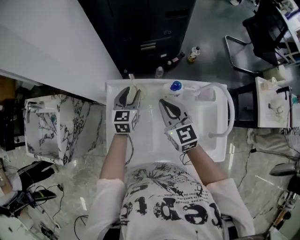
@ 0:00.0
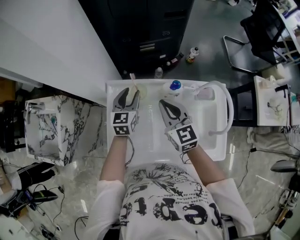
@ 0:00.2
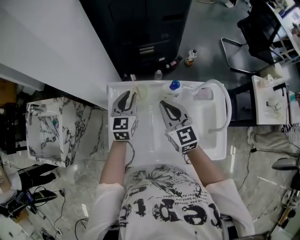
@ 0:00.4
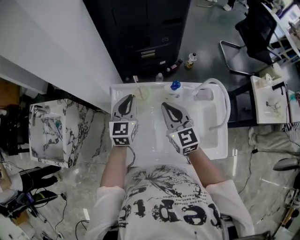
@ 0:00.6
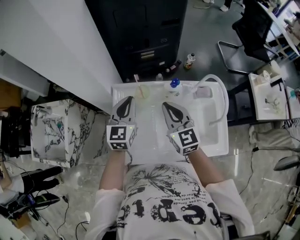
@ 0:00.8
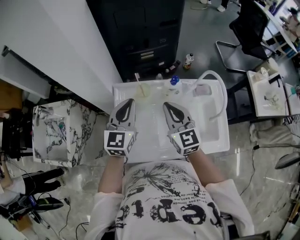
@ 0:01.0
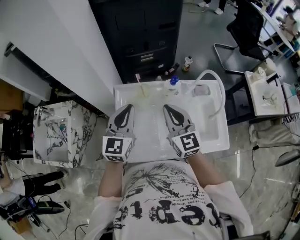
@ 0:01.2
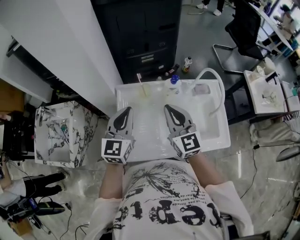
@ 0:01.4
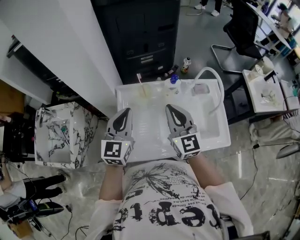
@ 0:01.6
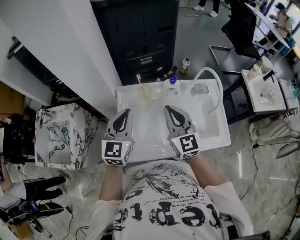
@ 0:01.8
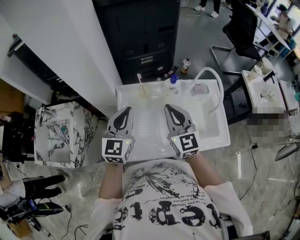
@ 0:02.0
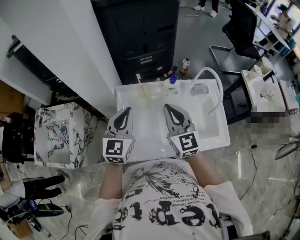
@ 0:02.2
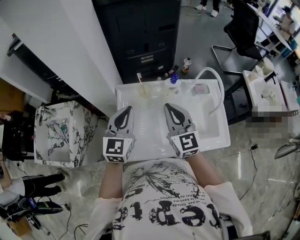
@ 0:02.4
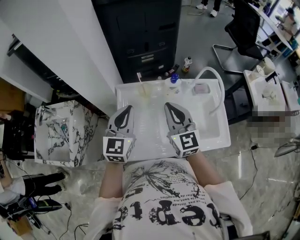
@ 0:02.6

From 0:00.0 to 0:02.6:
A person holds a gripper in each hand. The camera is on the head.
From 0:00.0 to 0:01.2: The left gripper heads upward and backward, covering roughly 25 cm, and closes its fingers; the right gripper shifts approximately 15 cm backward and upward.
From 0:01.2 to 0:02.6: There are only small adjustments of the grippers.

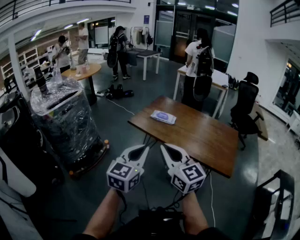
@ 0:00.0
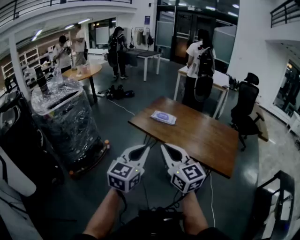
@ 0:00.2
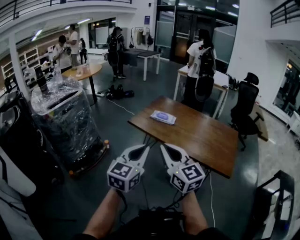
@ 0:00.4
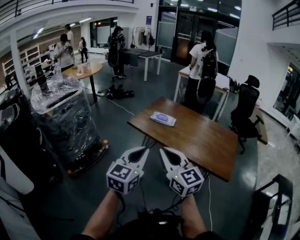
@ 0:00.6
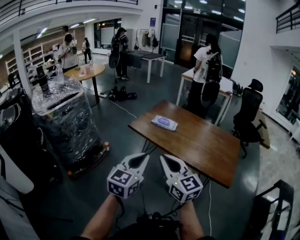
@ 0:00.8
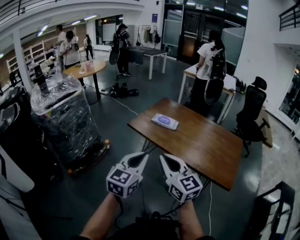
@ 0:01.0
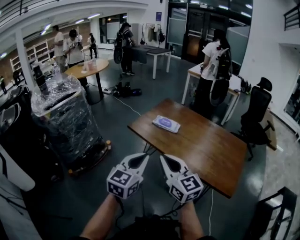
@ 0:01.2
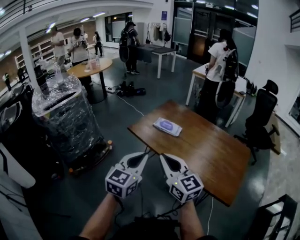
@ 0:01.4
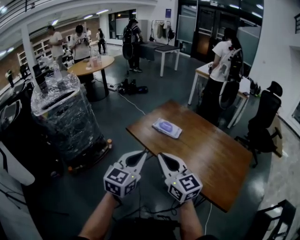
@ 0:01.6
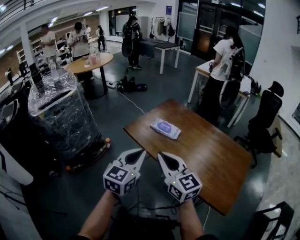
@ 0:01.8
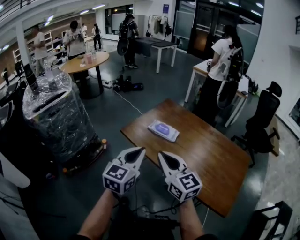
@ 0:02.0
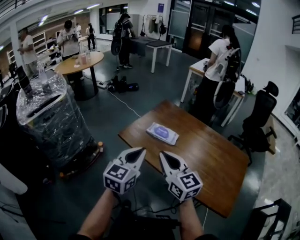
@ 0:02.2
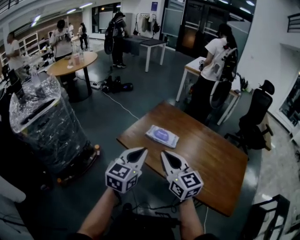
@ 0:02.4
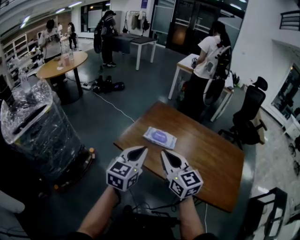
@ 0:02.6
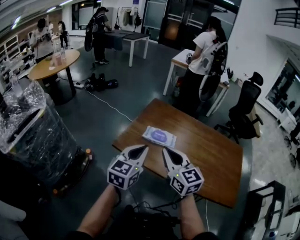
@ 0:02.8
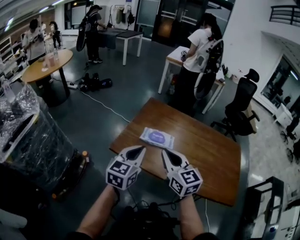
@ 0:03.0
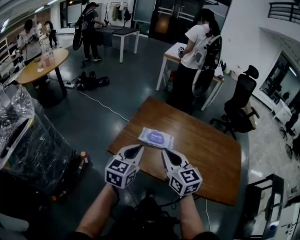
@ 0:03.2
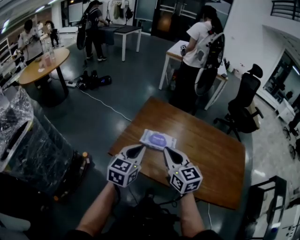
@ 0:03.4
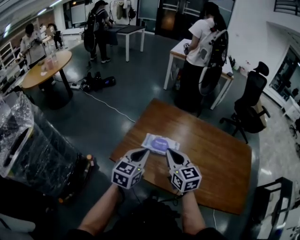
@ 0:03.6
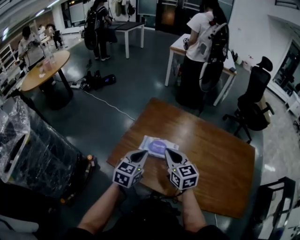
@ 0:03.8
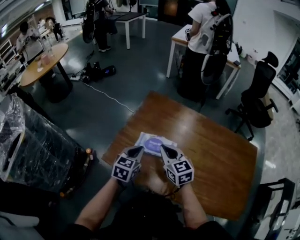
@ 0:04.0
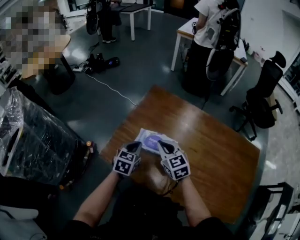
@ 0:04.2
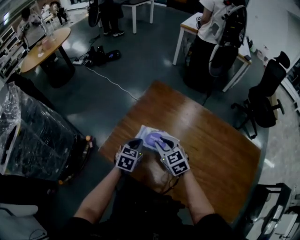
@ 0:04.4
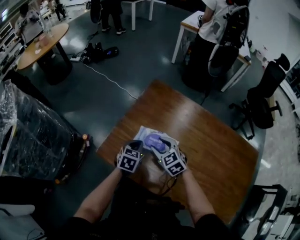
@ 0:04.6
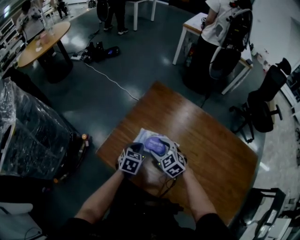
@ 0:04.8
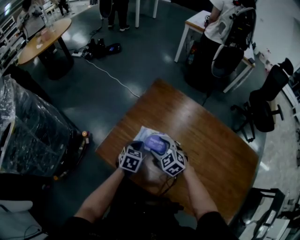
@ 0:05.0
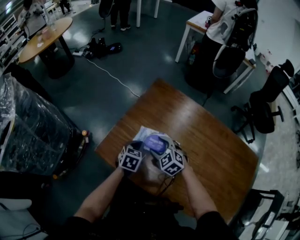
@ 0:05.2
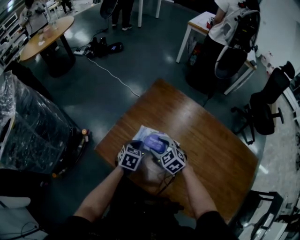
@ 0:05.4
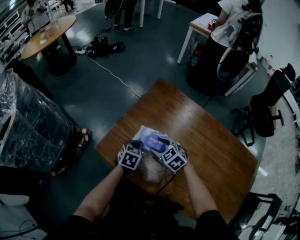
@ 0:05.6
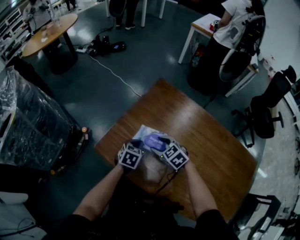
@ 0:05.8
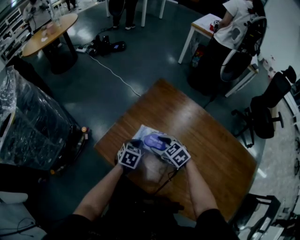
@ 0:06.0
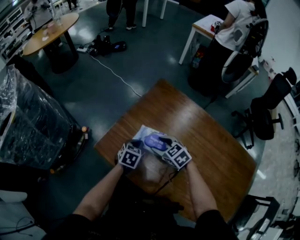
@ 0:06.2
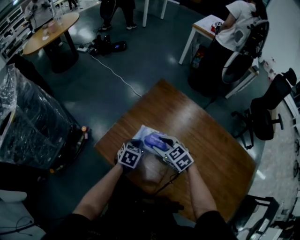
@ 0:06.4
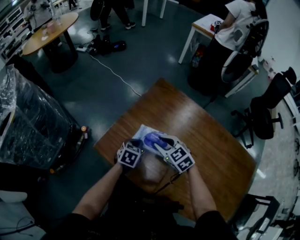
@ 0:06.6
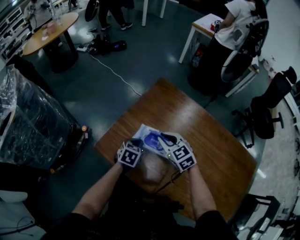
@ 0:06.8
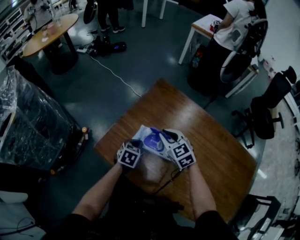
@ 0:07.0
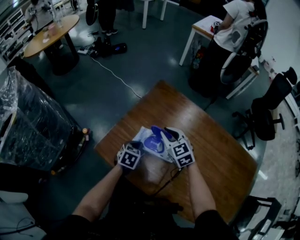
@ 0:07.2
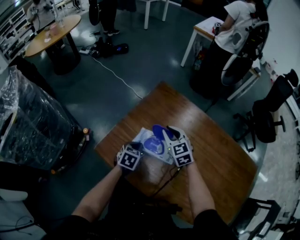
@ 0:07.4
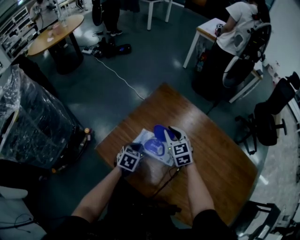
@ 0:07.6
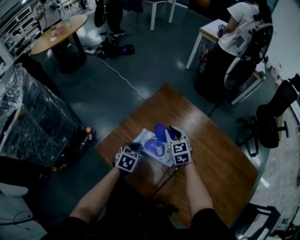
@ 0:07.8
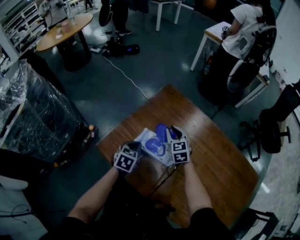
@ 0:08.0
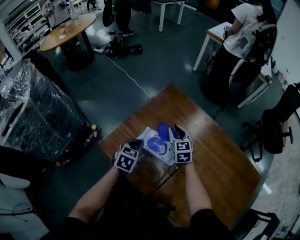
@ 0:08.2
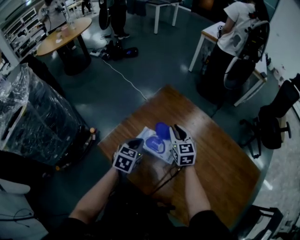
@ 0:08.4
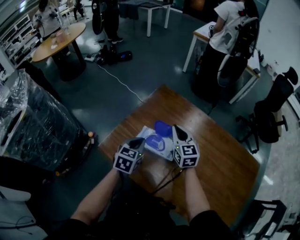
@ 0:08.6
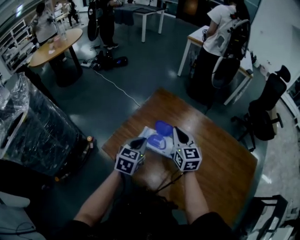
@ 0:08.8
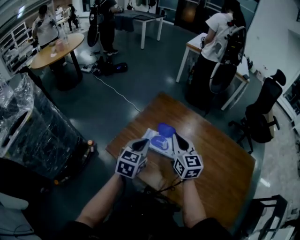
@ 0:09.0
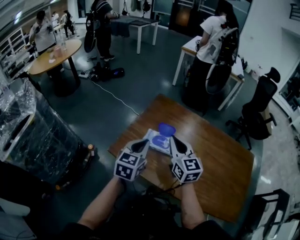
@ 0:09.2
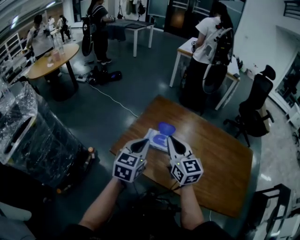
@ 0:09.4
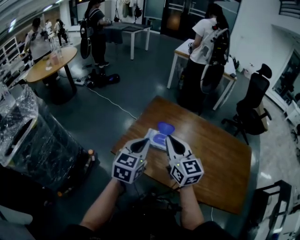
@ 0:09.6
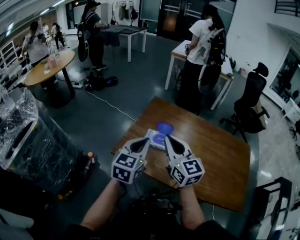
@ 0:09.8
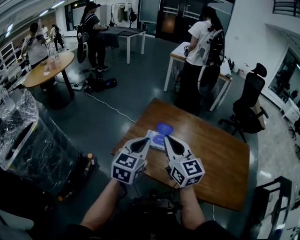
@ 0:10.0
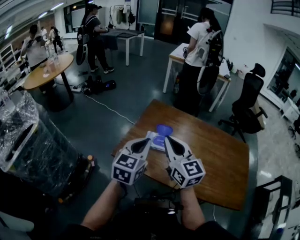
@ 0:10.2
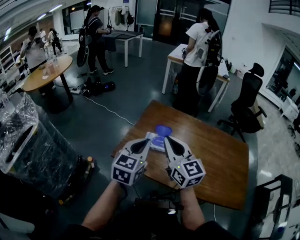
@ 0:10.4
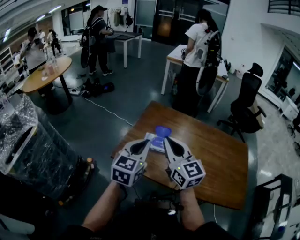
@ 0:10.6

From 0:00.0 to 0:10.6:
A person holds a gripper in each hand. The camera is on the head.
From 0:00.0 to 0:01.6: The two grippers go some 15 cm forward and to the right.
From 0:01.6 to 0:03.0: The grippers both shift forward by about 20 cm. The right gripper swivels about 30 degrees.
From 0:03.0 to 0:04.6: The two grippers go approximately 30 cm downward and forward. The left gripper tips its fingers downward by roughly 30 degrees, while the right gripper rotates approximately 30 degrees, and opens its fingers.
From 0:04.6 to 0:06.0: The grippers make only small movements.
From 0:06.0 to 0:07.6: The right gripper heads forward and upward, covering approximately 10 cm, rotates approximately 30 degrees, and closes.
From 0:07.6 to 0:09.0: The right gripper is displaced upward and backward by some 20 cm, and swivels about 30 degrees, while the left gripper travels upward by some 20 cm, and turns by about 30 degrees.
From 0:09.0 to 0:10.6: The right gripper heads backward, upward and to the left, covering roughly 20 cm; the left gripper goes some 15 cm upward and backward.

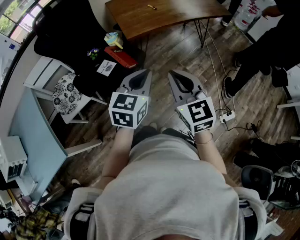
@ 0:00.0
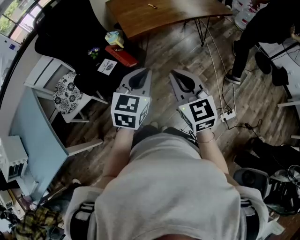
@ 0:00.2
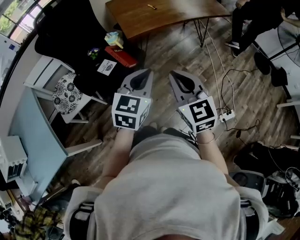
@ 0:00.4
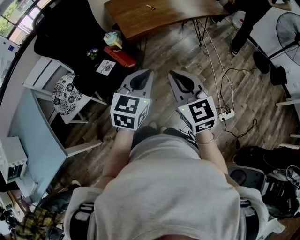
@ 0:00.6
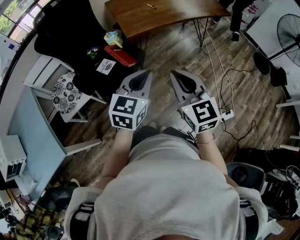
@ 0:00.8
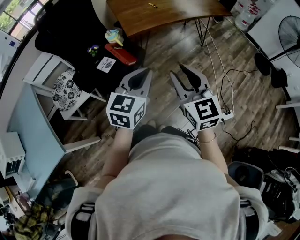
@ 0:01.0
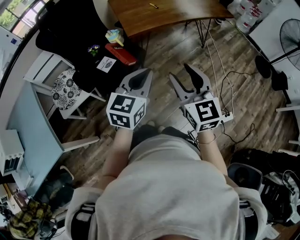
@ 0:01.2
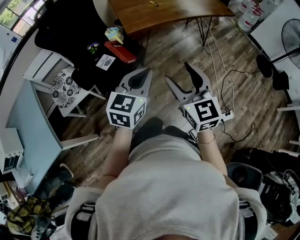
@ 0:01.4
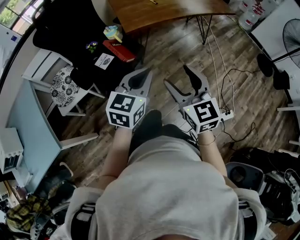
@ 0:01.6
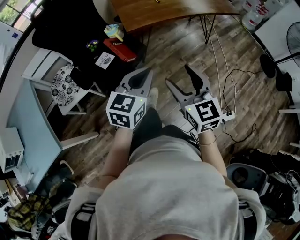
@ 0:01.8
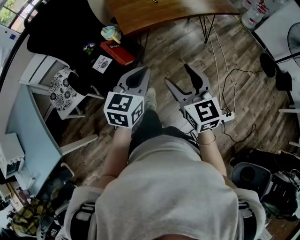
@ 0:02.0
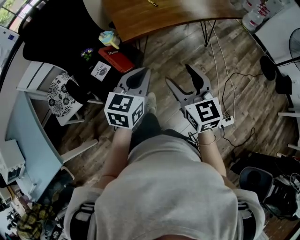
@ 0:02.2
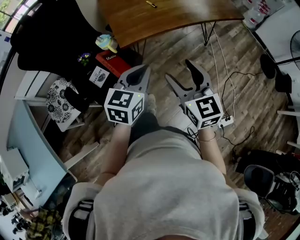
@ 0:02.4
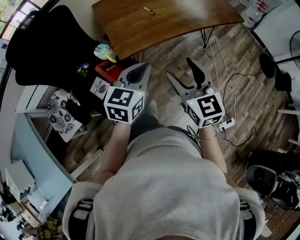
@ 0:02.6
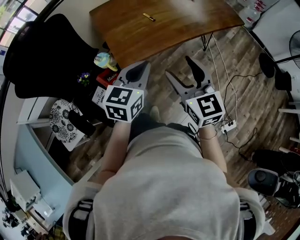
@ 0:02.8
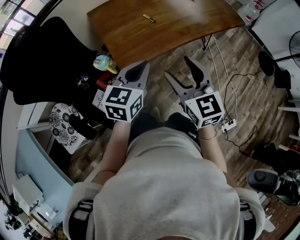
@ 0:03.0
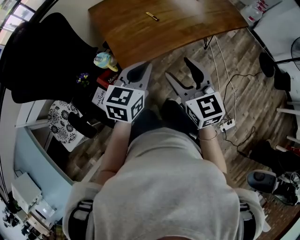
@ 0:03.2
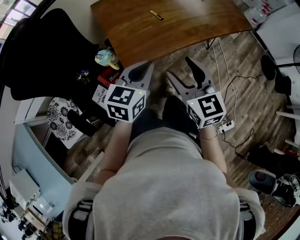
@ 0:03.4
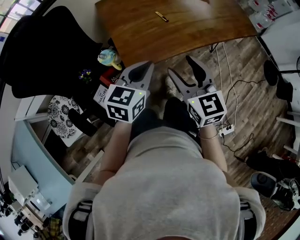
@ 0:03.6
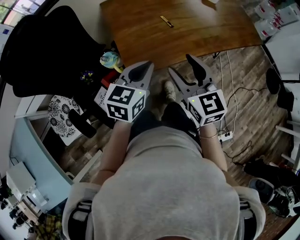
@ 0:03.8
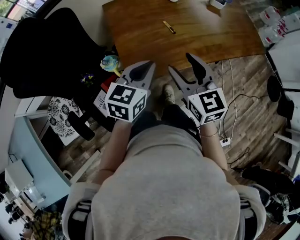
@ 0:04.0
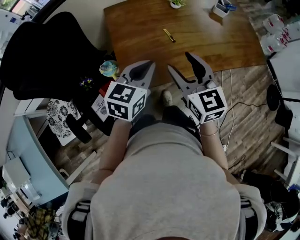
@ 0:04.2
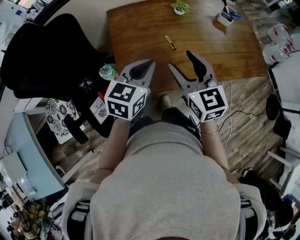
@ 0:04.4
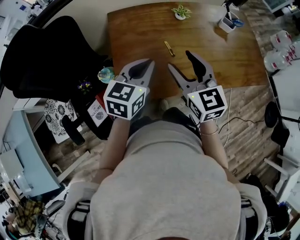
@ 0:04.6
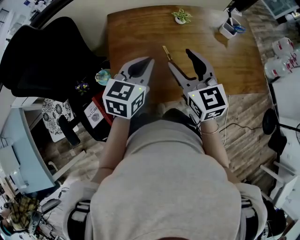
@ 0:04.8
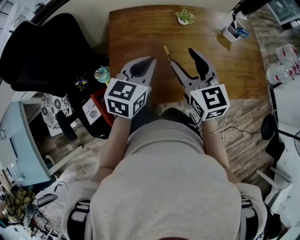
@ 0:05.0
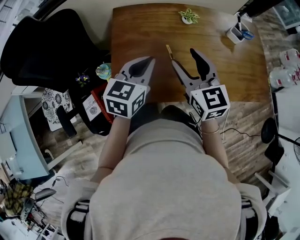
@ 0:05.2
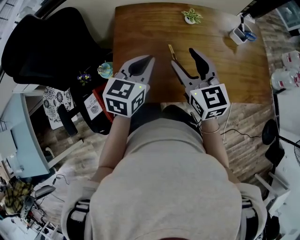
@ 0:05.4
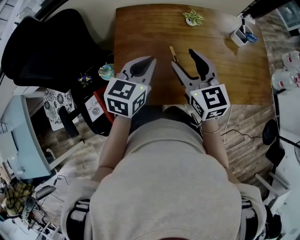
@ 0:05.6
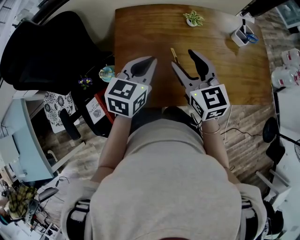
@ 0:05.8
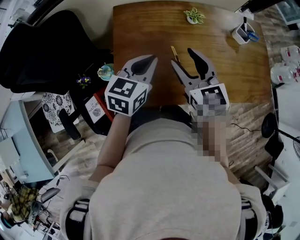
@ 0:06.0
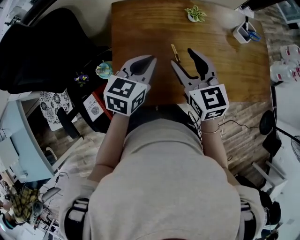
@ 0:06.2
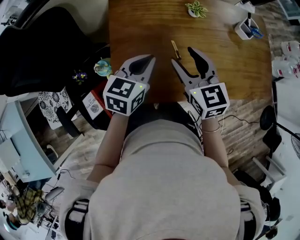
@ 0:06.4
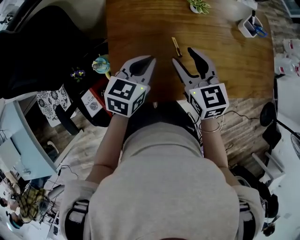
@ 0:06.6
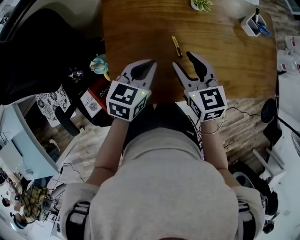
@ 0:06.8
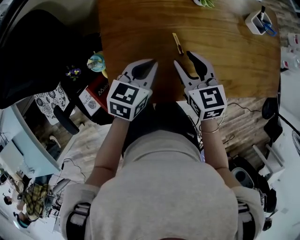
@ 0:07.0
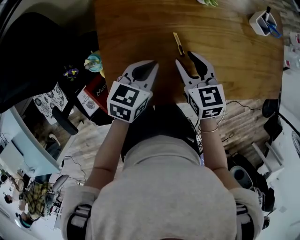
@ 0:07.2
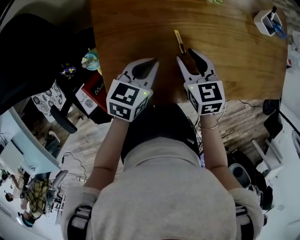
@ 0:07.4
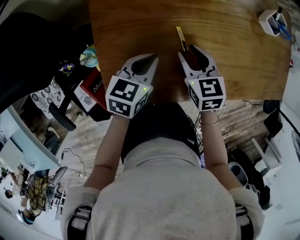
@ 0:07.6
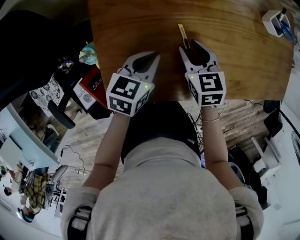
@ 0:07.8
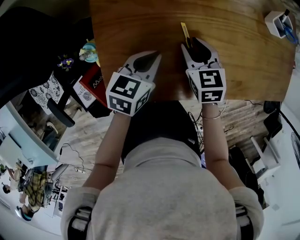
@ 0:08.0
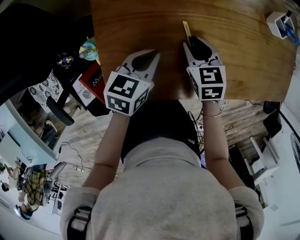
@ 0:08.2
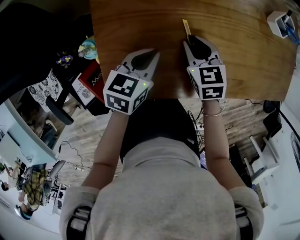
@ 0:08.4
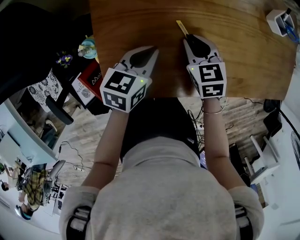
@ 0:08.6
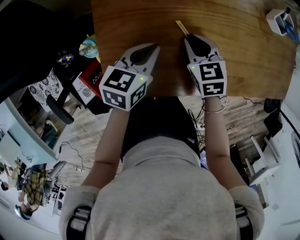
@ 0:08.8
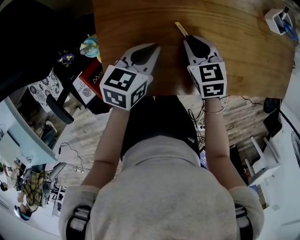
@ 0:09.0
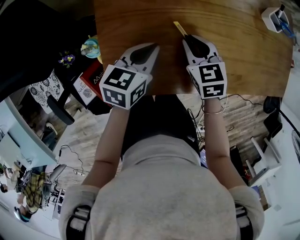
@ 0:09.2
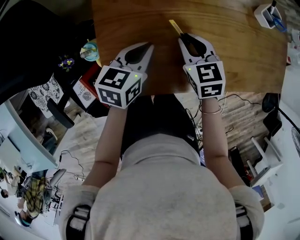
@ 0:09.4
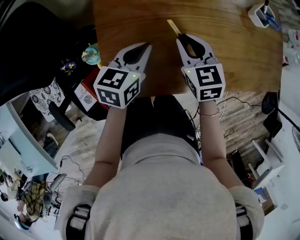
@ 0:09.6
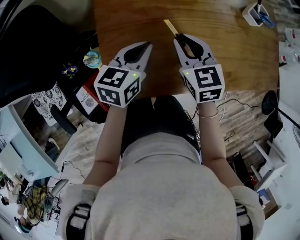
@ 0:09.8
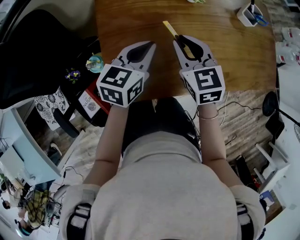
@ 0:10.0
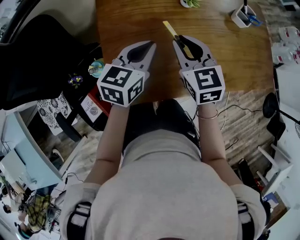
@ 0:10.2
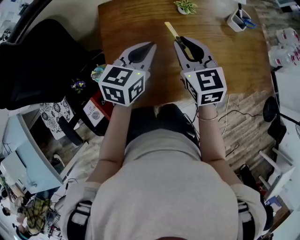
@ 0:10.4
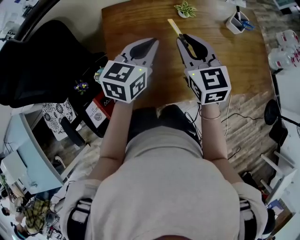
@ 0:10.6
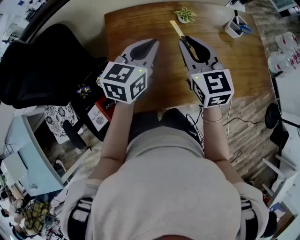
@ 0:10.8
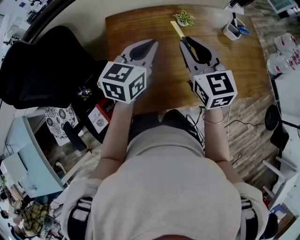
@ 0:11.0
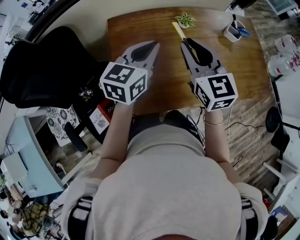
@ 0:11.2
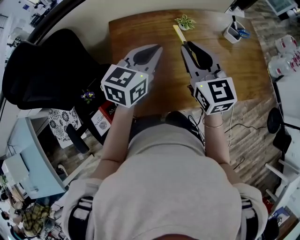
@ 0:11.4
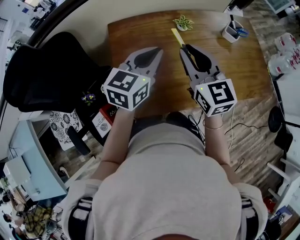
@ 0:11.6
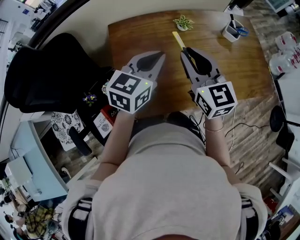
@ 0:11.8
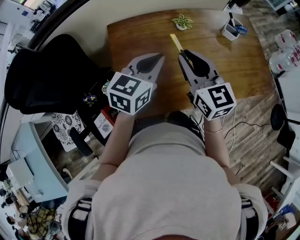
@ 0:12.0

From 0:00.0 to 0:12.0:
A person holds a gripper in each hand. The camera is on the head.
From 0:00.0 to 0:01.6: The right gripper moves some 5 cm, and opens.
From 0:01.6 to 0:03.0: Both grippers move forward, some 35 cm.
From 0:03.0 to 0:04.4: The two grippers go some 20 cm forward.
From 0:04.4 to 0:06.0: The grippers both shift forward by some 10 cm.
From 0:06.0 to 0:07.6: Both grippers travel together downward, roughly 20 cm. The left gripper rotates approximately 20 degrees, while the right gripper rotates approximately 30 degrees.
From 0:07.6 to 0:09.0: The grippers move only a little.
From 0:09.0 to 0:10.4: The grippers both shift upward by approximately 20 cm. The right gripper swivels approximately 30 degrees.
From 0:10.4 to 0:12.0: The grippers both shift upward by some 5 cm.
